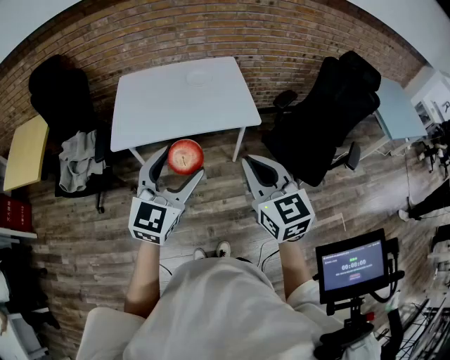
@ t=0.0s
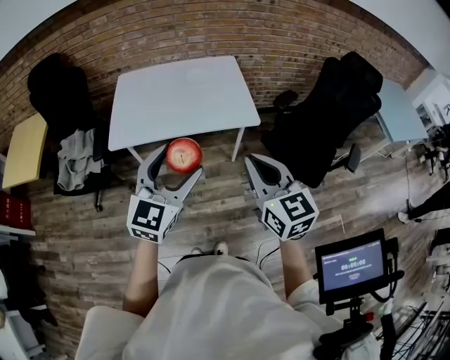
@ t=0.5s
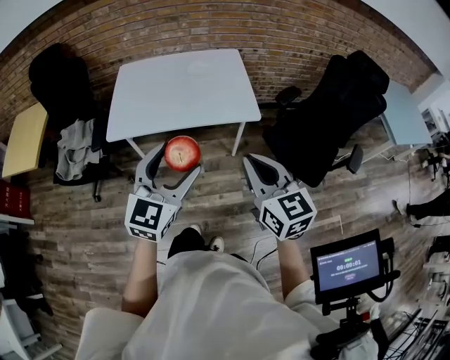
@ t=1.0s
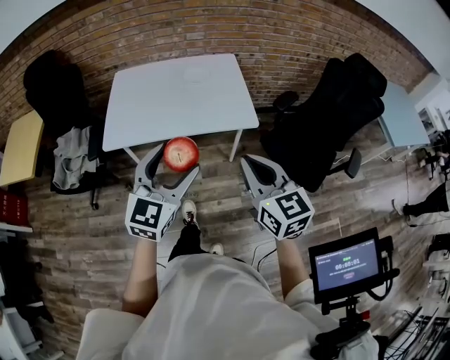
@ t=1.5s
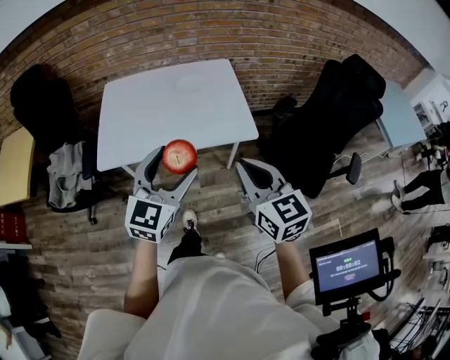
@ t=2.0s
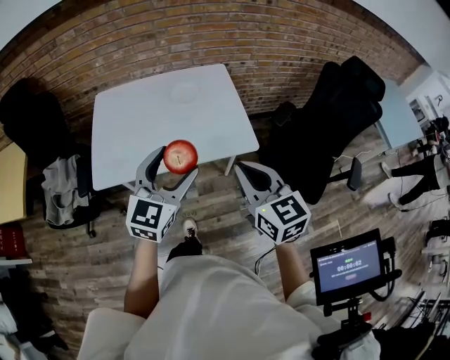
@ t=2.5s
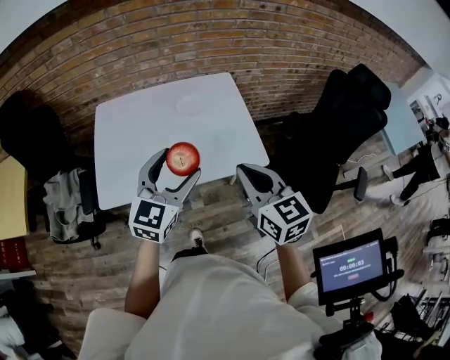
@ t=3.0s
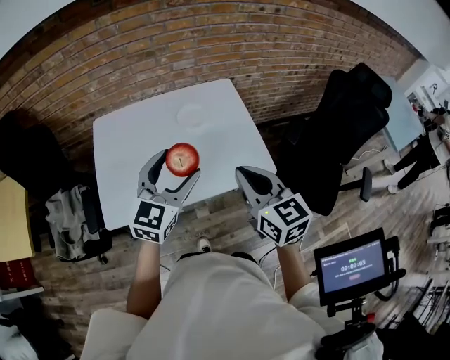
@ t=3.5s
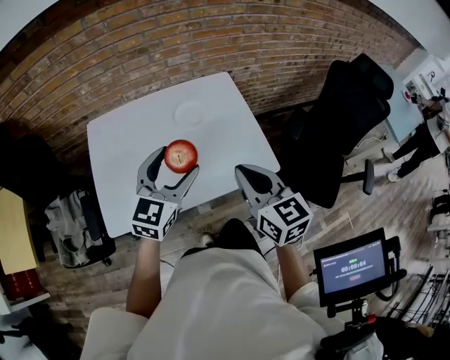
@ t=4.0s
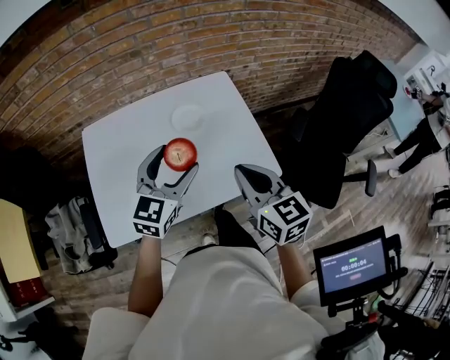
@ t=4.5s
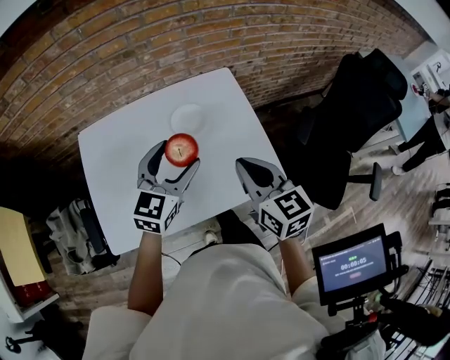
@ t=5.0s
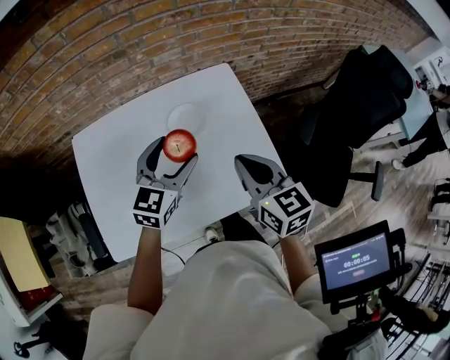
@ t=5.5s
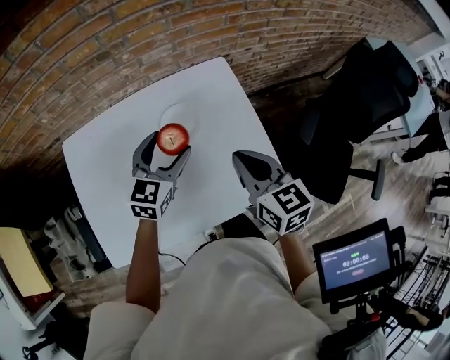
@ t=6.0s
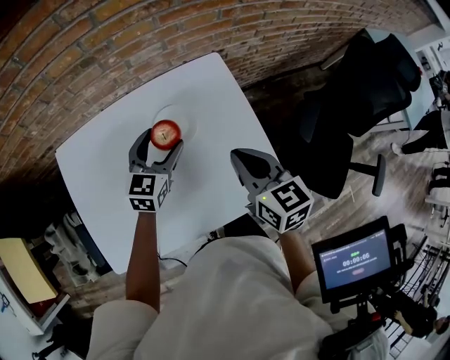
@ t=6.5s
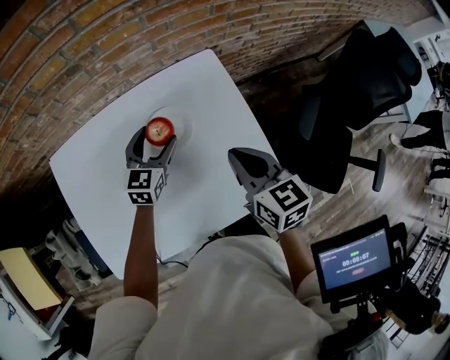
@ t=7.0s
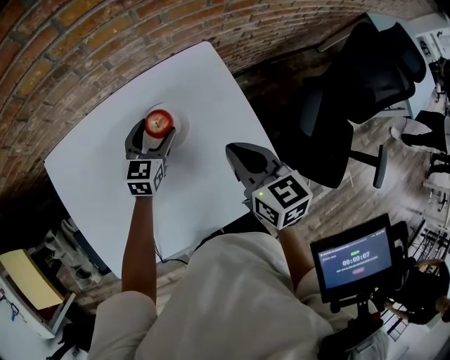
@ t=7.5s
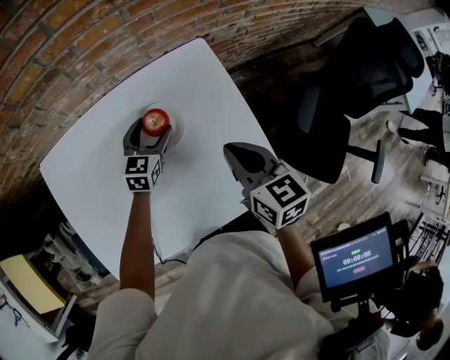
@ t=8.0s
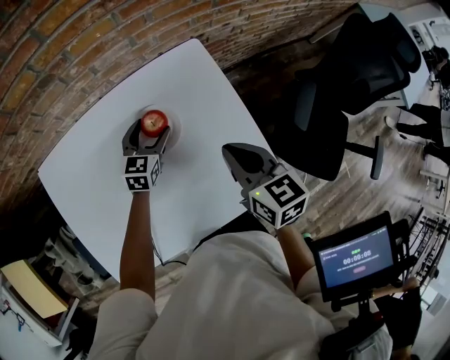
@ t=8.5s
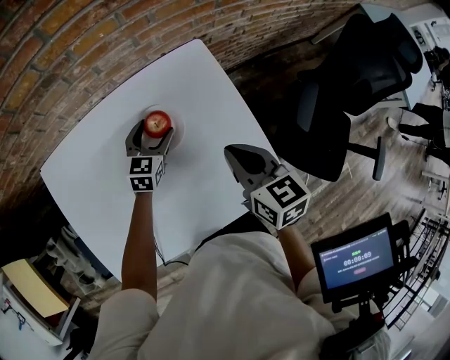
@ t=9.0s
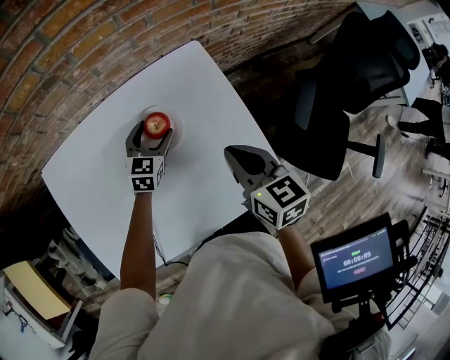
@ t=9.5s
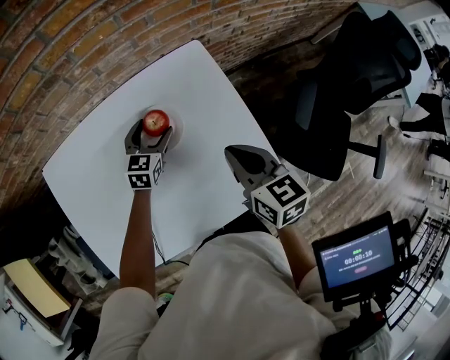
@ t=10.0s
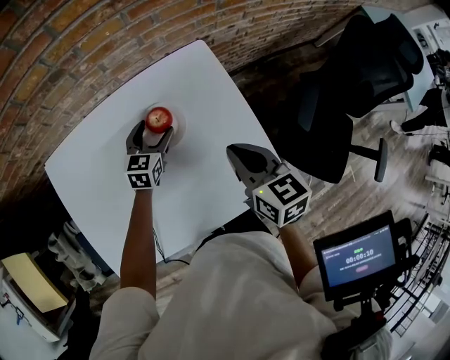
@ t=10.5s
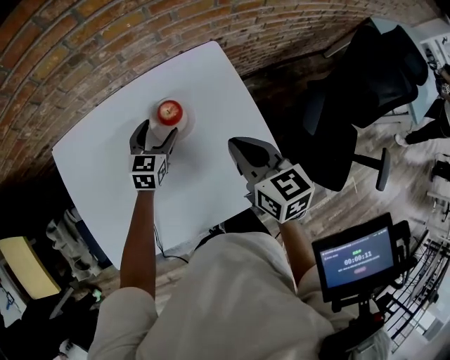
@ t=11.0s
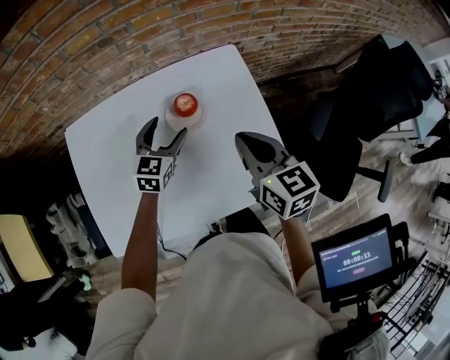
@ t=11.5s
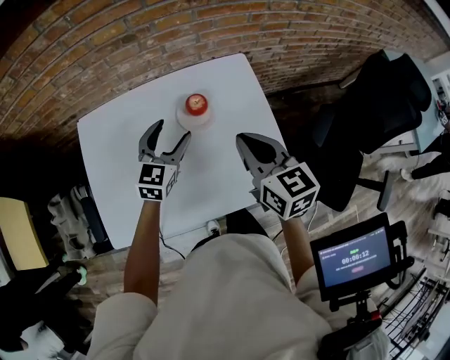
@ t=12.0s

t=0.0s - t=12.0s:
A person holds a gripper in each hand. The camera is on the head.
t=0.0s - t=2.0s: Both grippers travel together forward, roughly 10 cm.
t=2.0s - t=4.0s: The left gripper heads forward, covering some 25 cm, while the right gripper is displaced forward and to the left by approximately 25 cm.
t=4.0s - t=6.0s: The left gripper travels forward and downward by roughly 25 cm. The right gripper moves forward, some 20 cm.
t=6.0s - t=8.0s: The left gripper is displaced downward and forward by some 20 cm. Meanwhile the right gripper goes about 10 cm downward and forward.
t=8.0s - t=10.0s: The grippers stay close to where they were, moving slightly.
t=10.0s - t=12.0s: The left gripper moves upward and backward, approximately 20 cm; the right gripper goes some 10 cm upward and to the left.

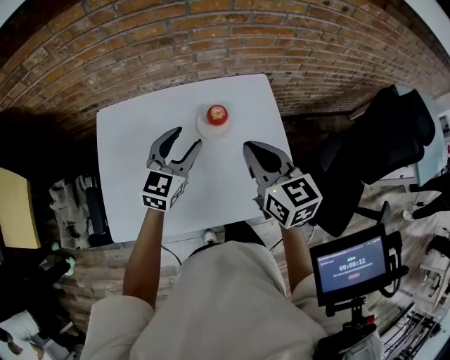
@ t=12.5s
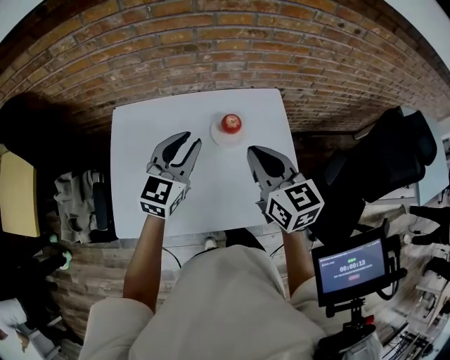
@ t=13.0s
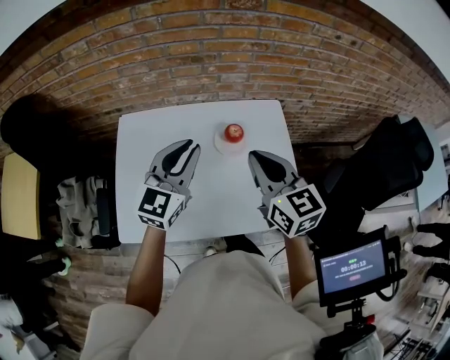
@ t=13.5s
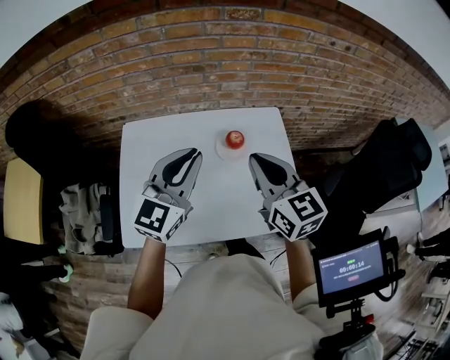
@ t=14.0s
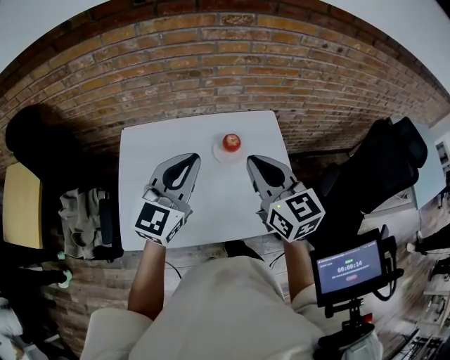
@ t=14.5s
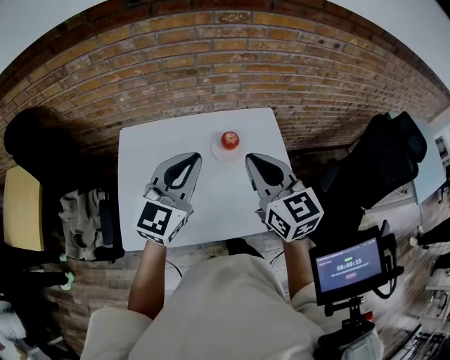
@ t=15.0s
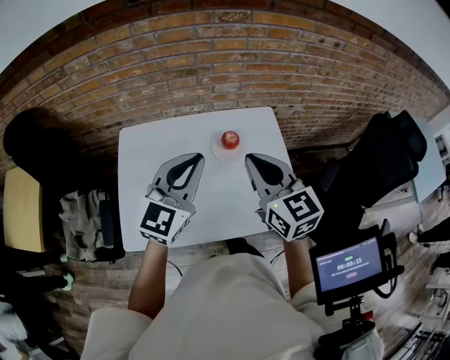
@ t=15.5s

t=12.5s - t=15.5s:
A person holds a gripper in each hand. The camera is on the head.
t=12.5s - t=14.0s: The left gripper heads upward and backward, covering roughly 15 cm, and closes its fingers, while the right gripper goes roughly 10 cm upward.
t=14.0s - t=15.5s: The grippers stay close to where they were, moving slightly.

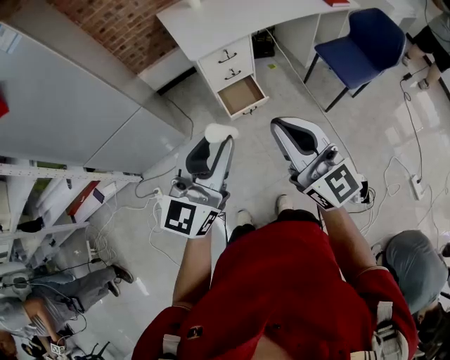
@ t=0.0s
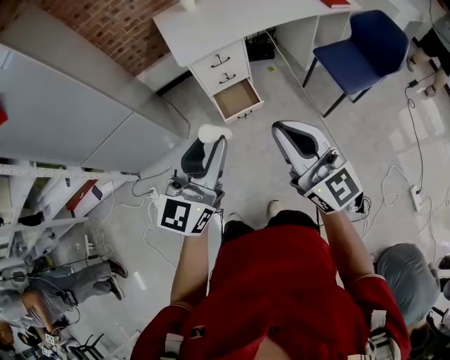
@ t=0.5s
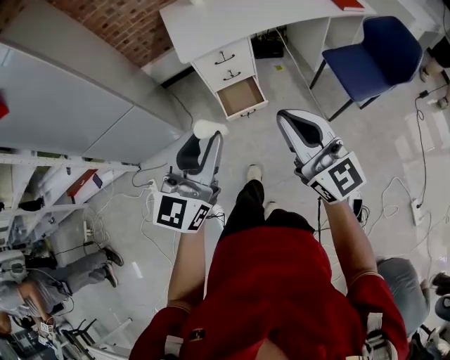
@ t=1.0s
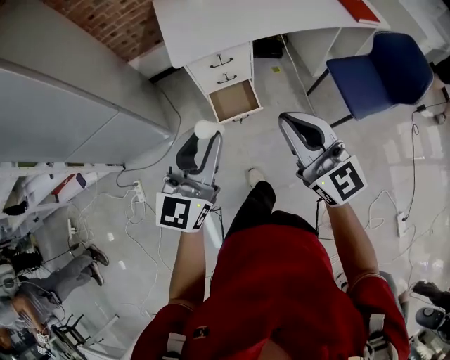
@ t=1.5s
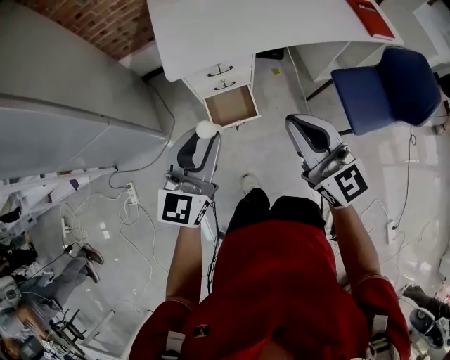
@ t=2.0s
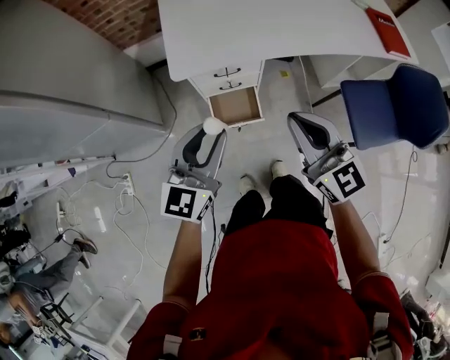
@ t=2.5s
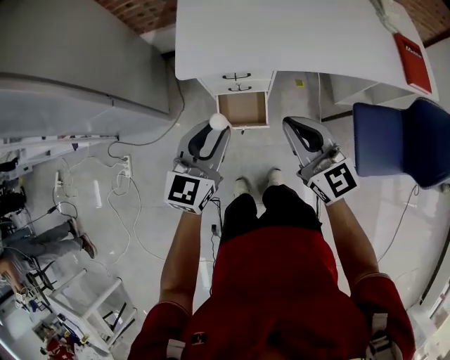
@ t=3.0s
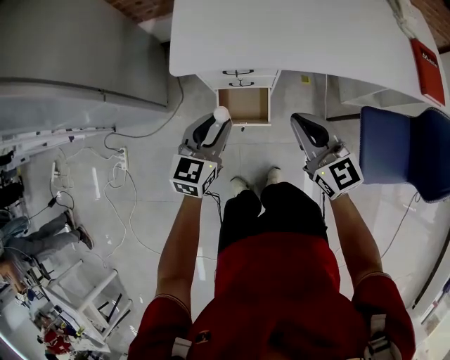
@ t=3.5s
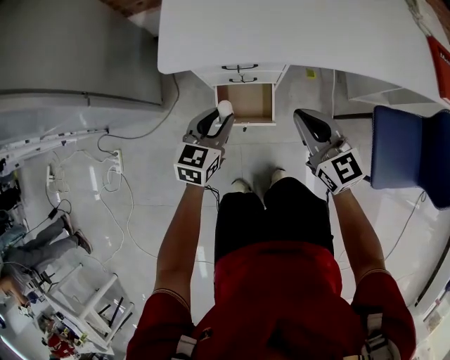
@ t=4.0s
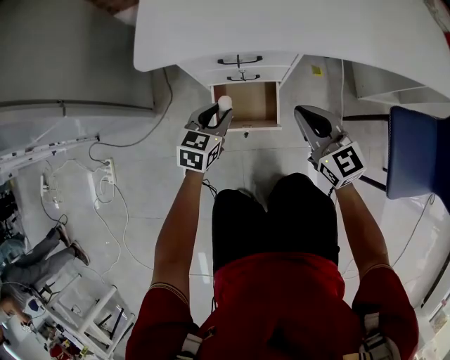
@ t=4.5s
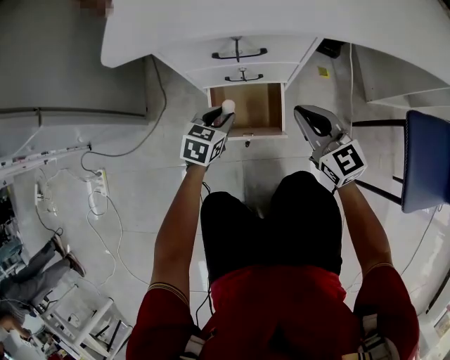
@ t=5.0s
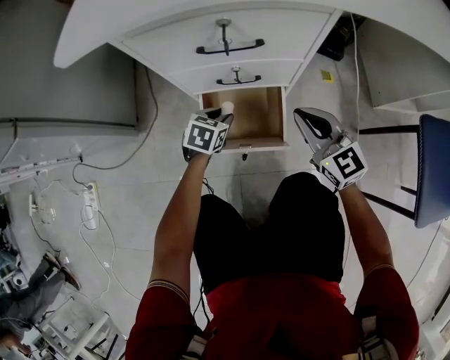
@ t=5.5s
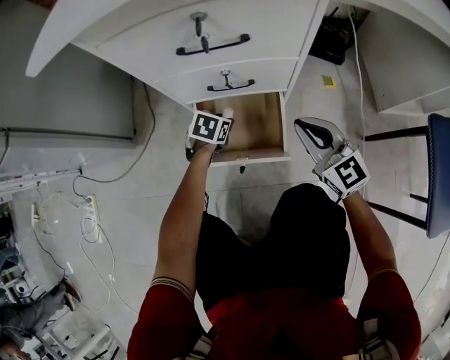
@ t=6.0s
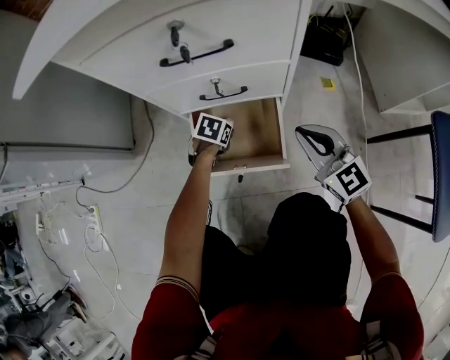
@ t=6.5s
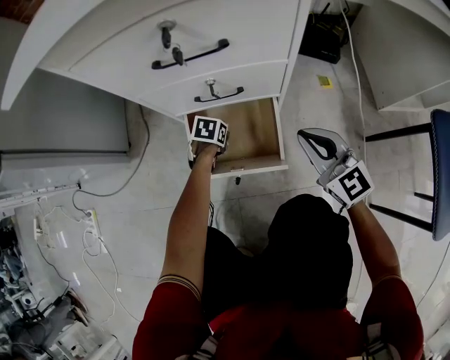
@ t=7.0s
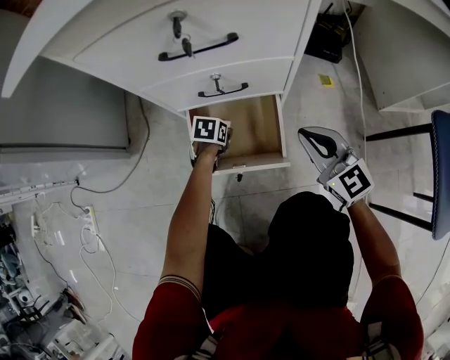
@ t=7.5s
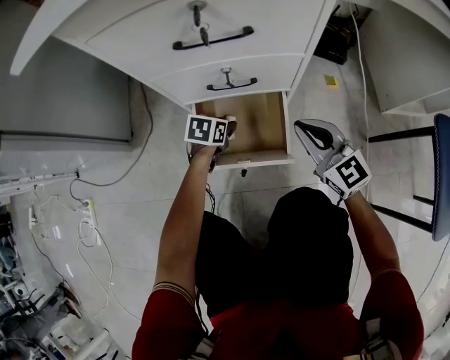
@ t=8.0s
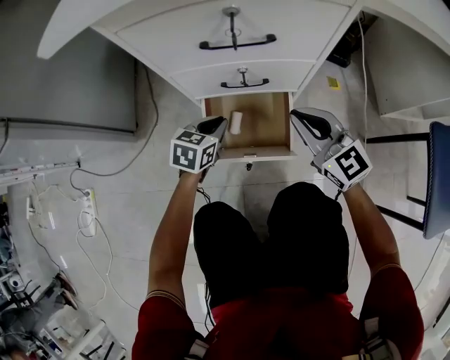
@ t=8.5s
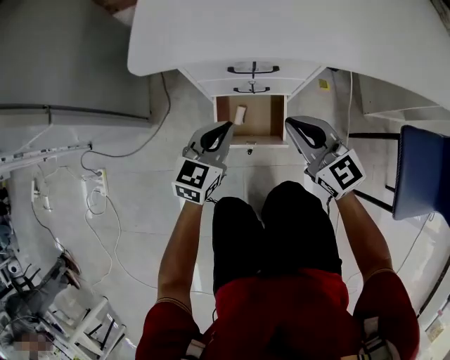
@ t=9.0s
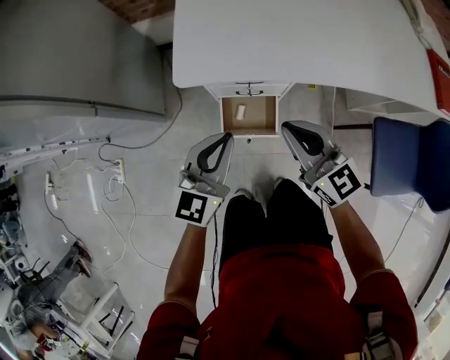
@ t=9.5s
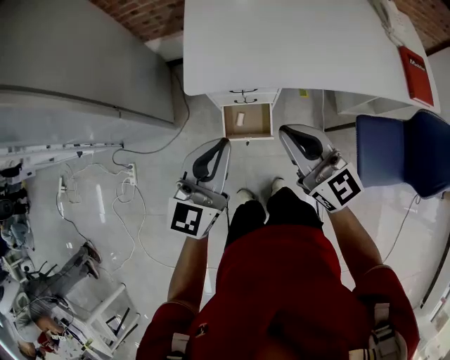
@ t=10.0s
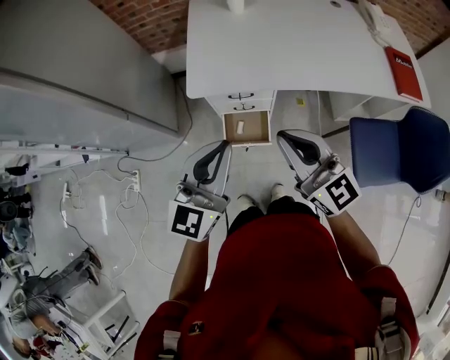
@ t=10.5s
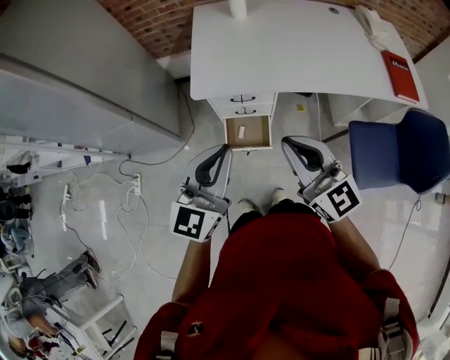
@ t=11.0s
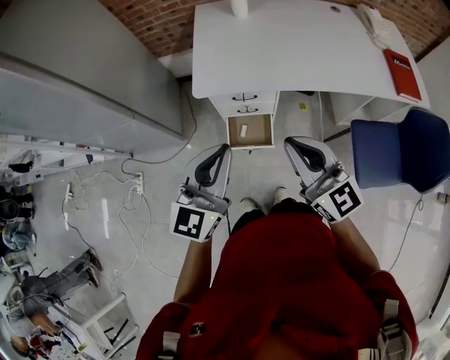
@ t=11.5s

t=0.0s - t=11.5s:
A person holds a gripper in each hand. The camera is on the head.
t=0.0s - t=2.0s: The right gripper goes roughly 30 cm forward and to the right; the left gripper heads forward and downward, covering some 30 cm.
t=2.0s - t=4.0s: Both grippers move downward and forward, approximately 35 cm. The left gripper turns by some 30 degrees.
t=4.0s - t=6.0s: Both grippers move downward, some 40 cm. The left gripper angles its fingers downward, by some 30 degrees.
t=6.0s - t=7.5s: The left gripper shifts about 10 cm downward.
t=7.5s - t=9.5s: The right gripper shifts approximately 40 cm upward. The left gripper goes roughly 70 cm upward, angles its fingers upward, by some 60 degrees, and closes its fingers.
t=9.5s - t=11.5s: The grippers both shift upward and backward by about 25 cm.
